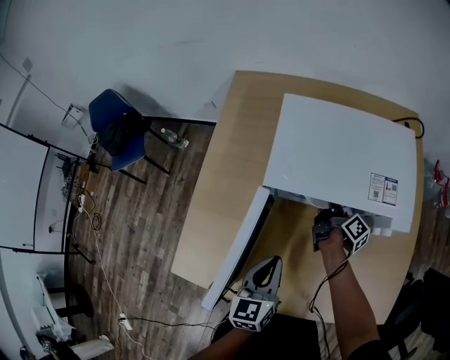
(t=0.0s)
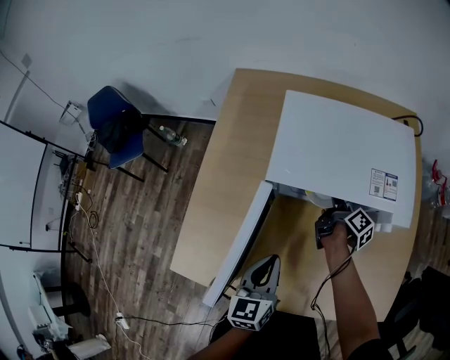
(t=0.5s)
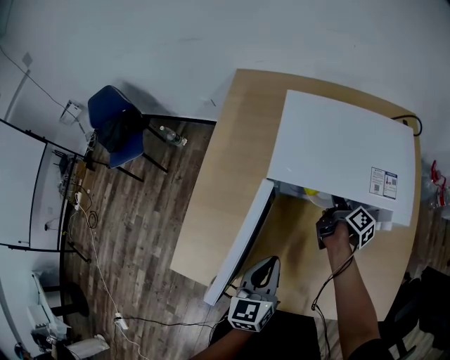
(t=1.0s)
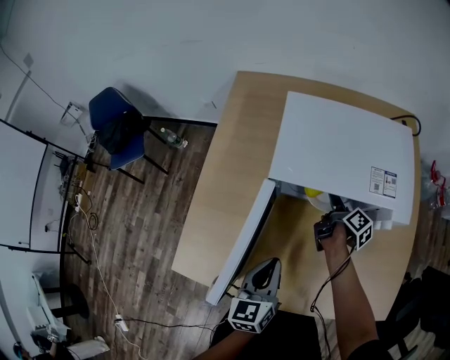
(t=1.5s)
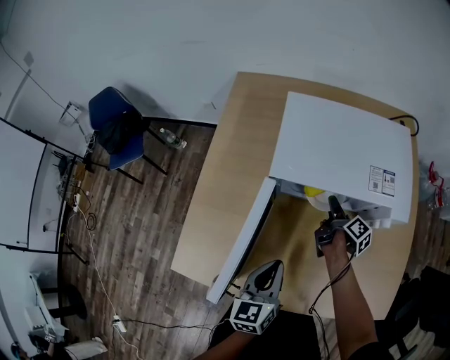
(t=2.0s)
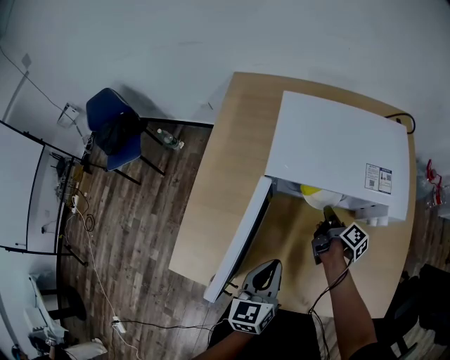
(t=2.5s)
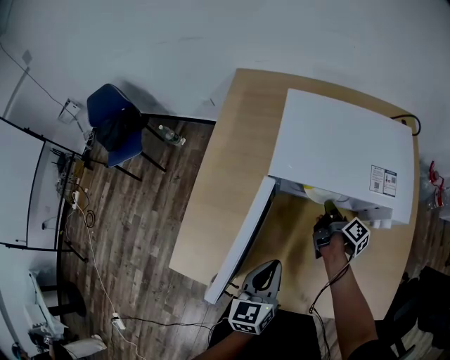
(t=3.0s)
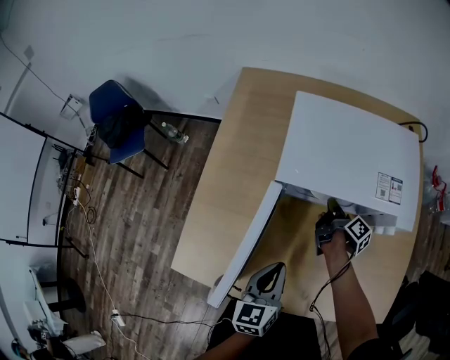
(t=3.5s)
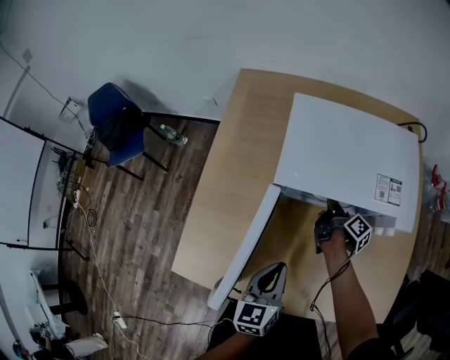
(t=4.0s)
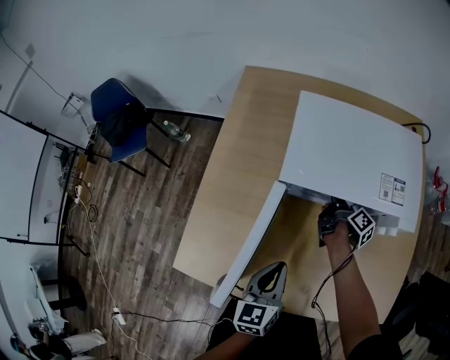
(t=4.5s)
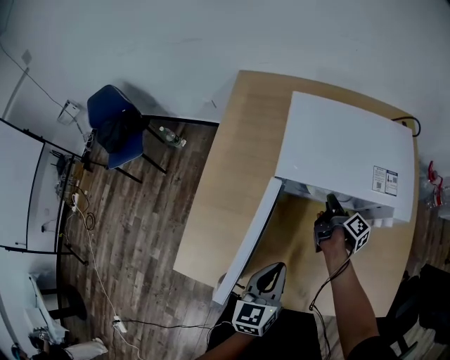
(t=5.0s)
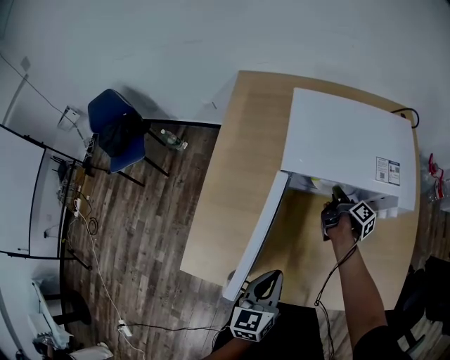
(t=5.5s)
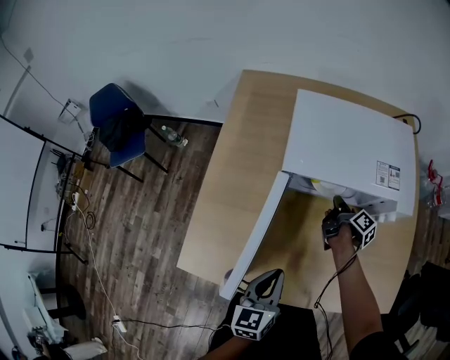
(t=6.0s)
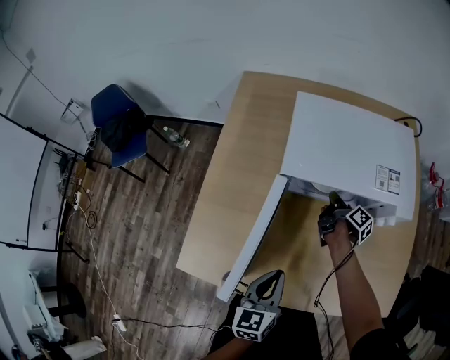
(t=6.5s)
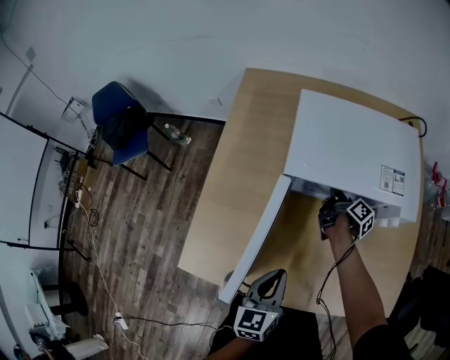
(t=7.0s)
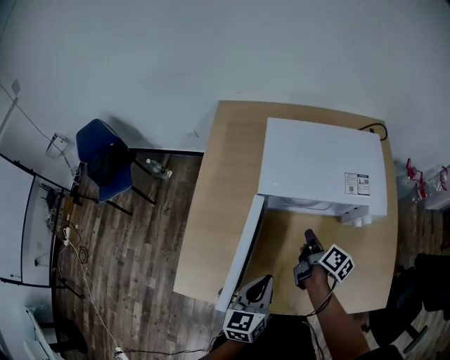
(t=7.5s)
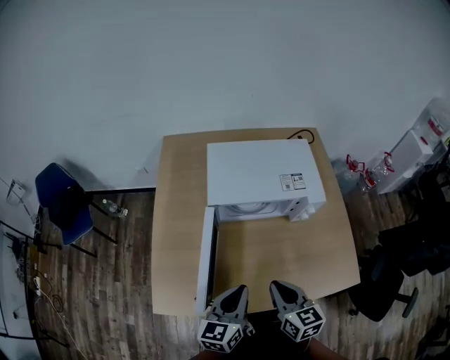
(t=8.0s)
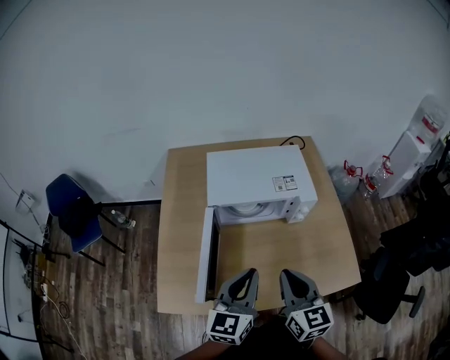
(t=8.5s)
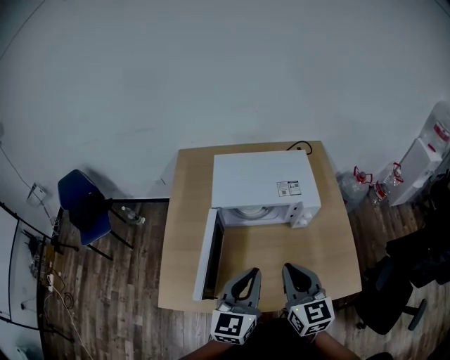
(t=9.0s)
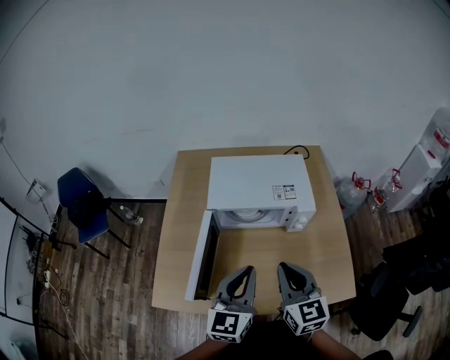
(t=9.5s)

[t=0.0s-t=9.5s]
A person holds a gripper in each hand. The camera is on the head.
t=4.0s to t=5.5s: The left gripper changes place by some 5 cm.
t=7.5s to t=9.5s: The left gripper goes approximately 20 cm upward, and changes its angle by some 30 degrees.

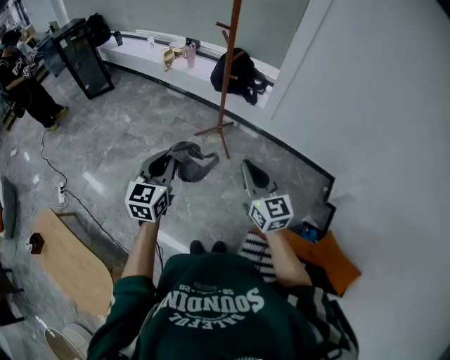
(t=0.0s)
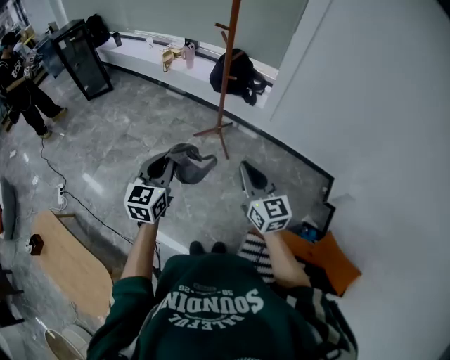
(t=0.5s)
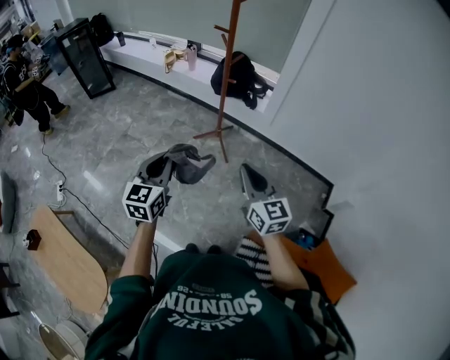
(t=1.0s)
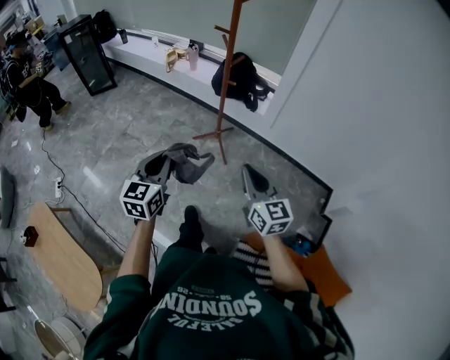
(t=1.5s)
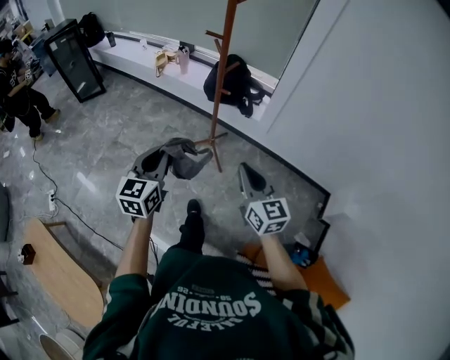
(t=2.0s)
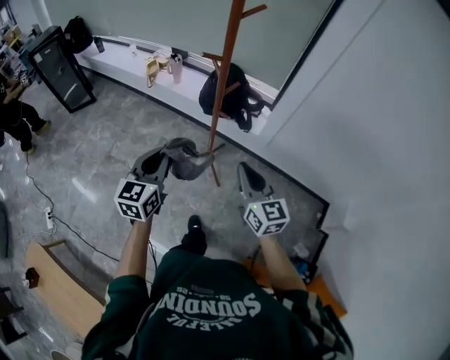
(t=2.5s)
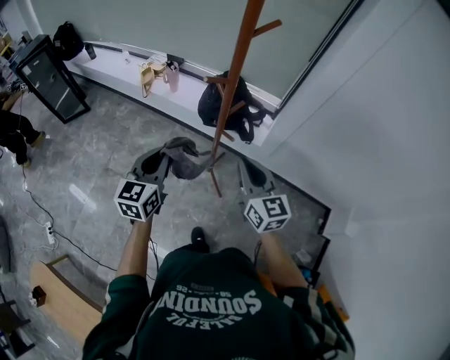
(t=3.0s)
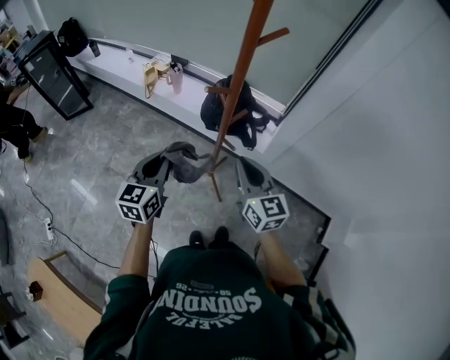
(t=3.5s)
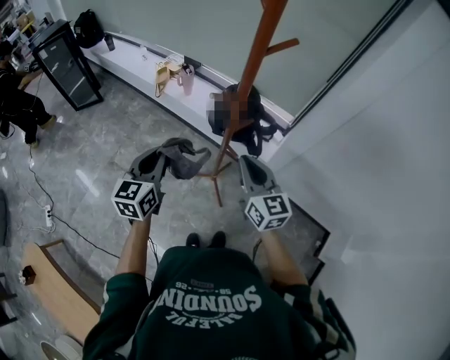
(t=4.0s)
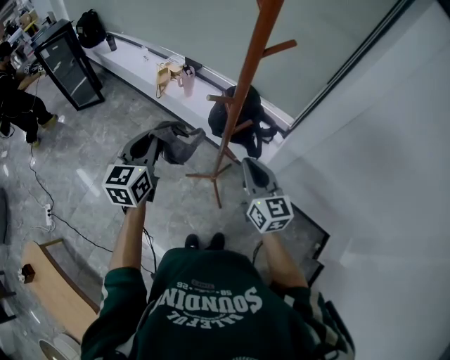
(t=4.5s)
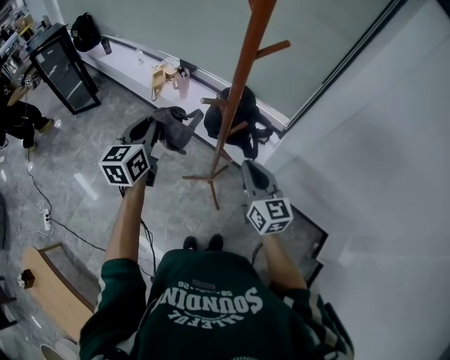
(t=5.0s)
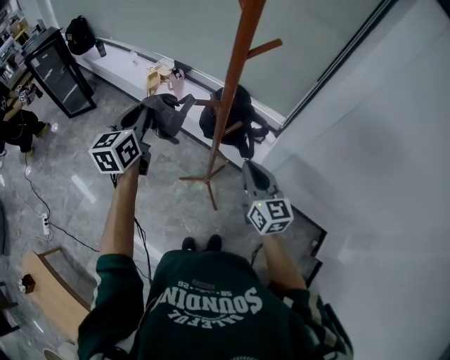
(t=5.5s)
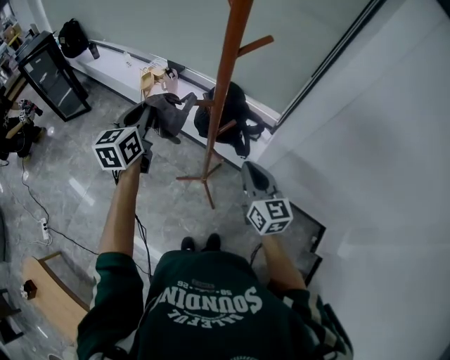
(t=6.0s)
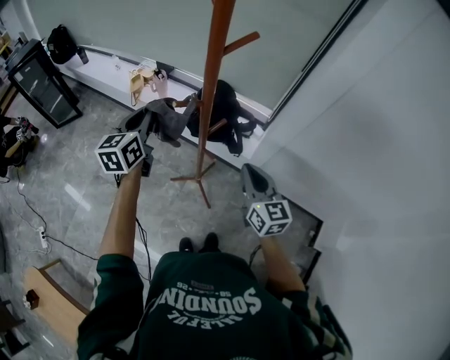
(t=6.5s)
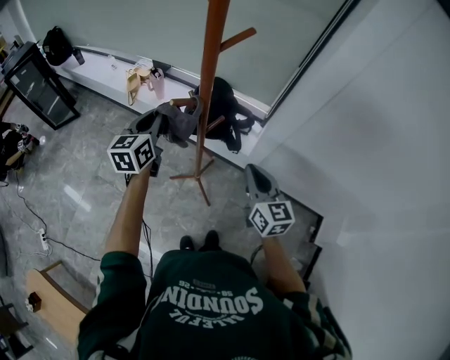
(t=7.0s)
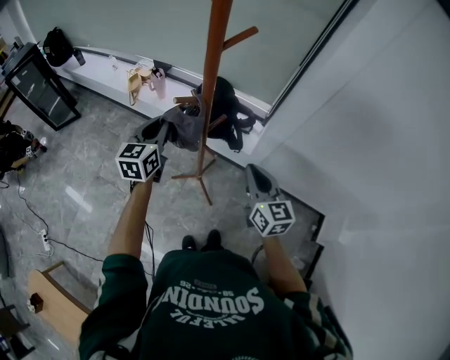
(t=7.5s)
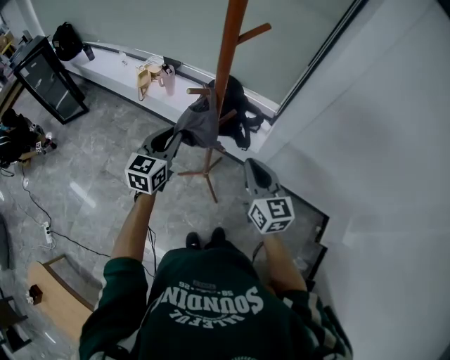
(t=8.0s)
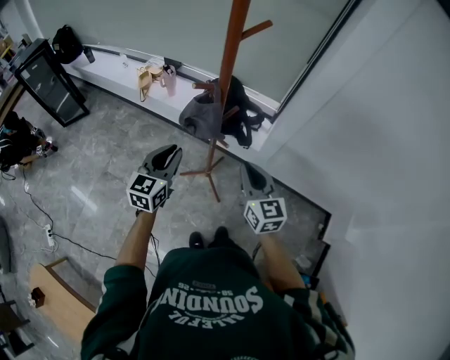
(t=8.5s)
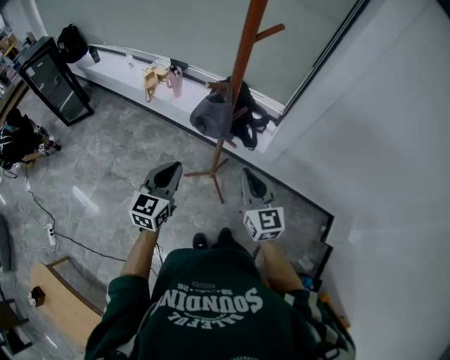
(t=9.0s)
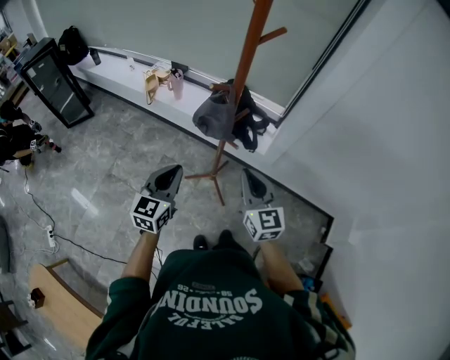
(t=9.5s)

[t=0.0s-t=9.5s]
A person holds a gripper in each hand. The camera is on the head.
t=0.0s to t=2.0s: Both grippers travel together forward, roughly 15 cm.
t=2.0s to t=4.0s: The grippers both shift forward by approximately 30 cm.
t=4.0s to t=5.5s: The right gripper moves to the right, approximately 5 cm, while the left gripper goes about 15 cm forward and upward.
t=5.5s to t=7.5s: The left gripper travels to the right and downward by some 10 cm, while the right gripper moves approximately 5 cm.
t=7.5s to t=9.5s: The left gripper shifts about 20 cm backward. The right gripper shifts roughly 10 cm to the left and backward.

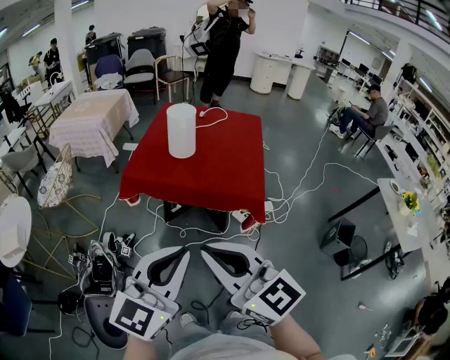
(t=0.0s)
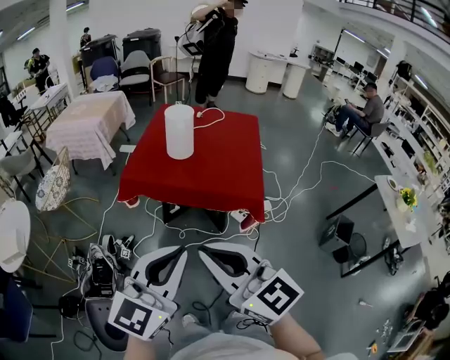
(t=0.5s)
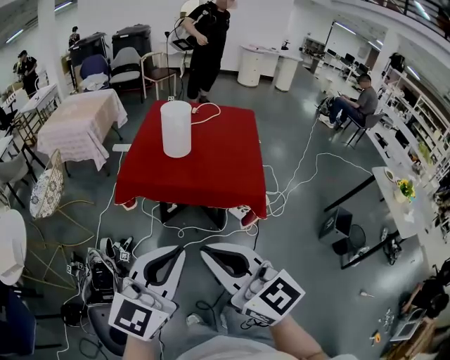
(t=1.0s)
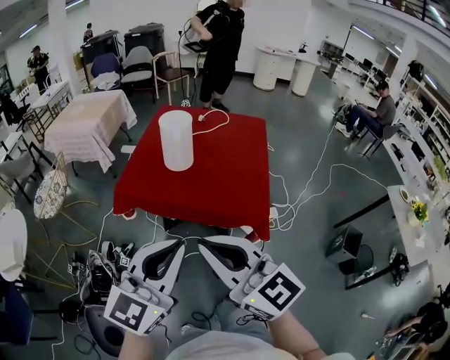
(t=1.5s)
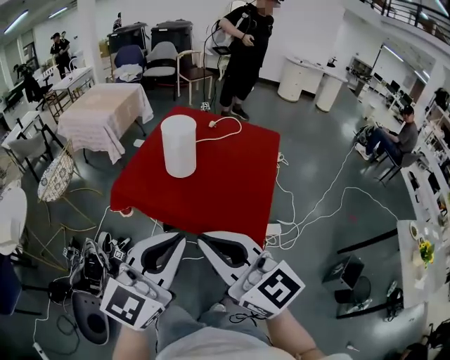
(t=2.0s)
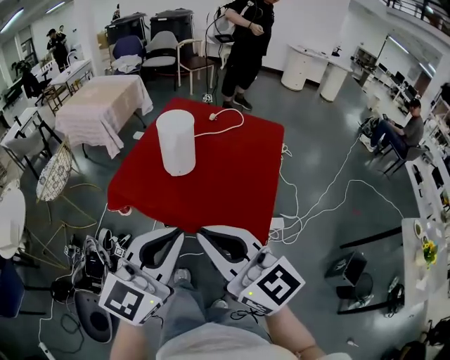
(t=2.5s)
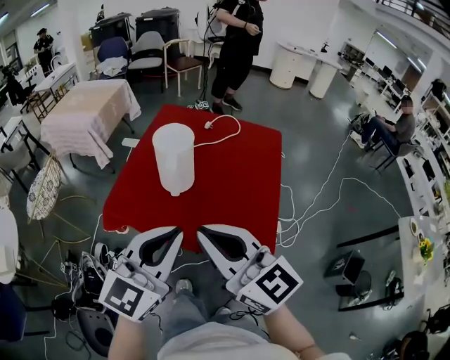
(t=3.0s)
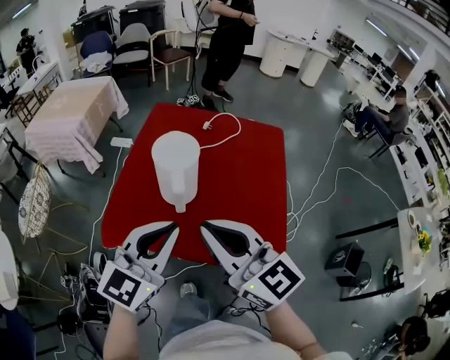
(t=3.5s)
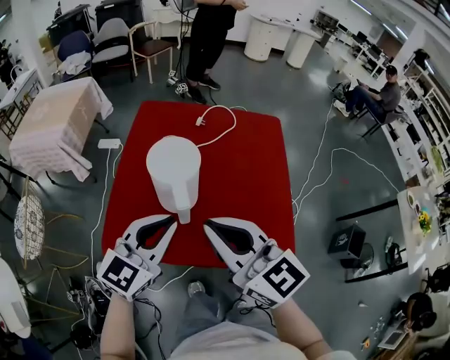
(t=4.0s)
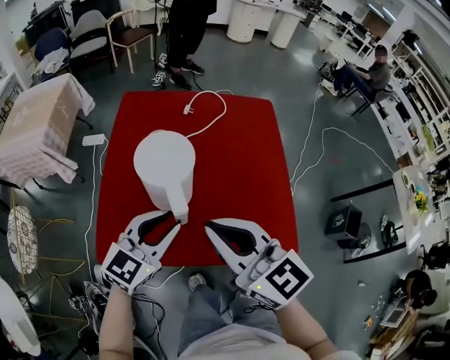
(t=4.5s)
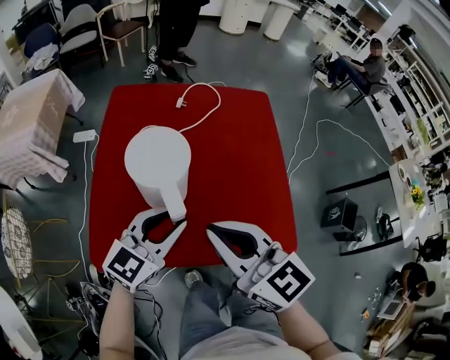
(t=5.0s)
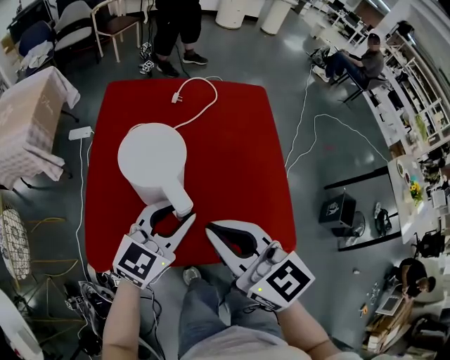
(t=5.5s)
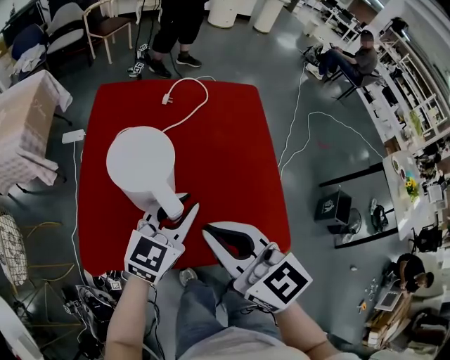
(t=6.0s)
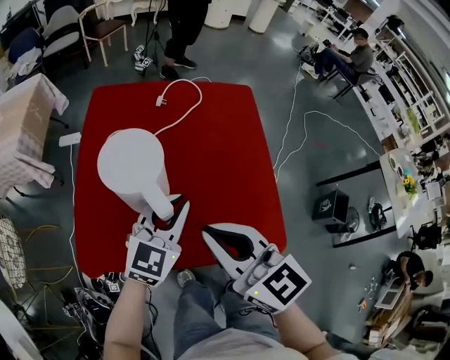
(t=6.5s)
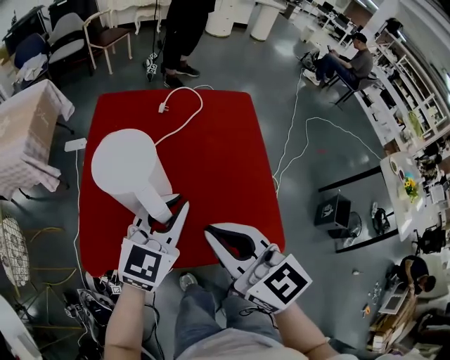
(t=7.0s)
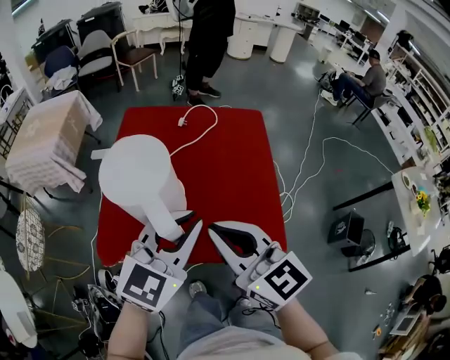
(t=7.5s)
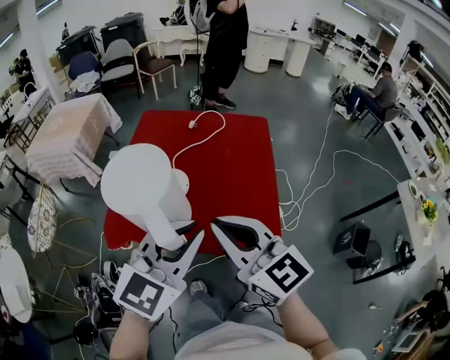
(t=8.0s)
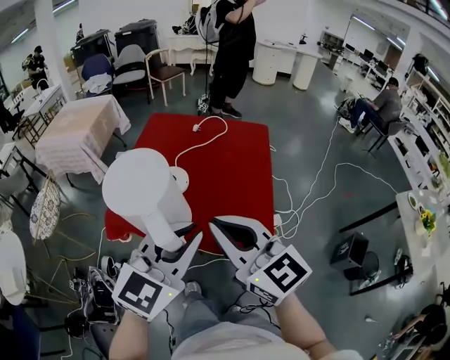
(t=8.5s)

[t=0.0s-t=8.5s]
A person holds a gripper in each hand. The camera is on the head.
t=0.0s to t=2.0s: The two grippers go about 20 cm forward and to the right.
t=2.0s to t=4.0s: Both grippers move forward, about 30 cm. The left gripper swivels roughly 20 degrees.
t=4.0s to t=6.5s: The right gripper shifts some 5 cm downward, while the left gripper is displaced to the right, downward and forward by about 15 cm.
t=6.5s to t=8.5s: The right gripper heads backward and upward, covering about 20 cm. The left gripper travels backward and upward by roughly 30 cm.
